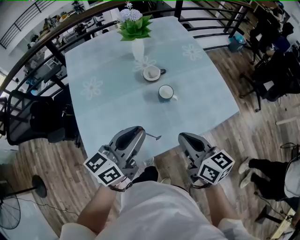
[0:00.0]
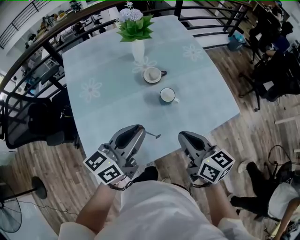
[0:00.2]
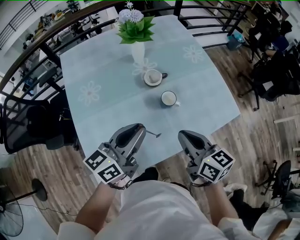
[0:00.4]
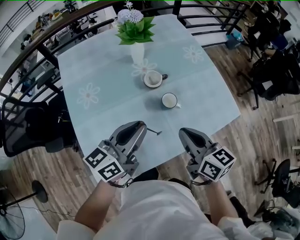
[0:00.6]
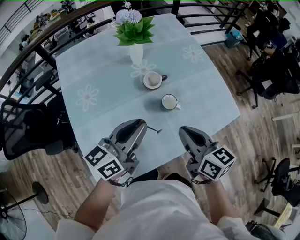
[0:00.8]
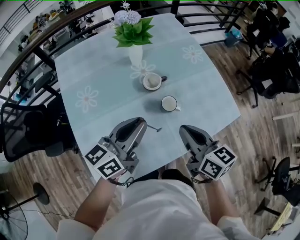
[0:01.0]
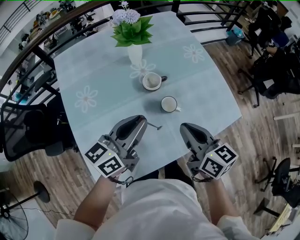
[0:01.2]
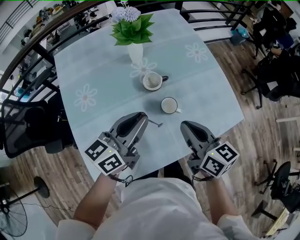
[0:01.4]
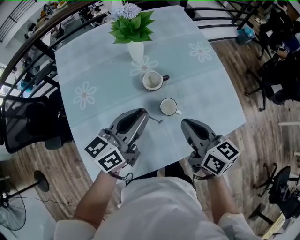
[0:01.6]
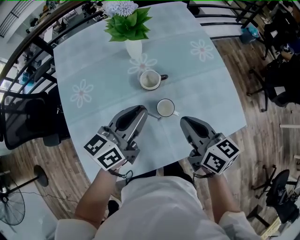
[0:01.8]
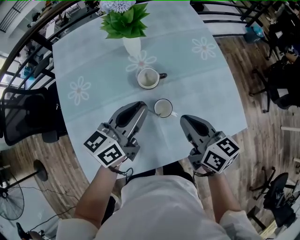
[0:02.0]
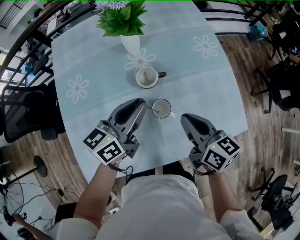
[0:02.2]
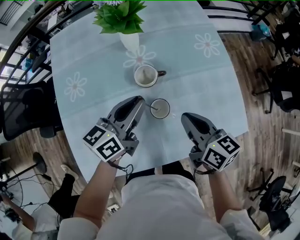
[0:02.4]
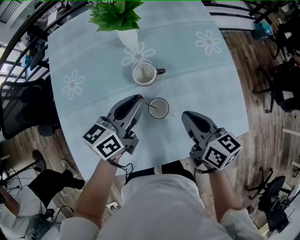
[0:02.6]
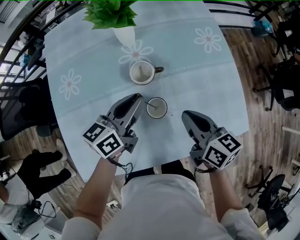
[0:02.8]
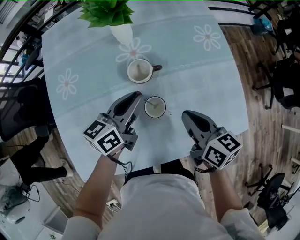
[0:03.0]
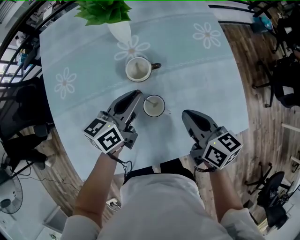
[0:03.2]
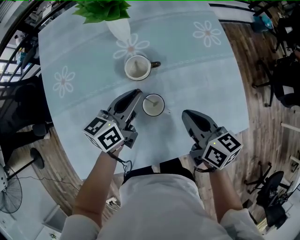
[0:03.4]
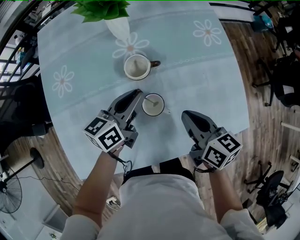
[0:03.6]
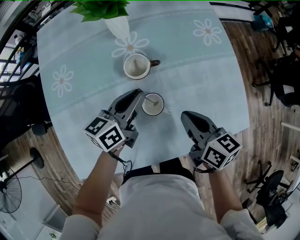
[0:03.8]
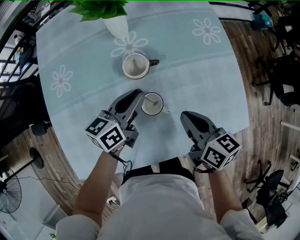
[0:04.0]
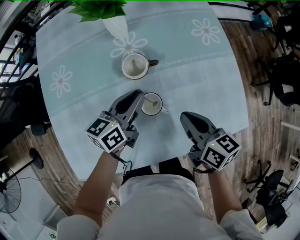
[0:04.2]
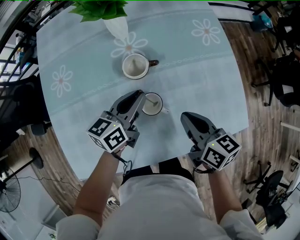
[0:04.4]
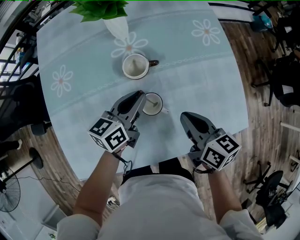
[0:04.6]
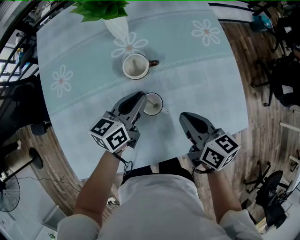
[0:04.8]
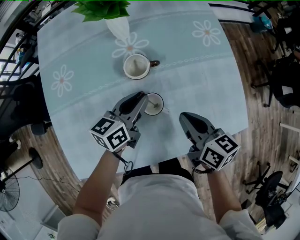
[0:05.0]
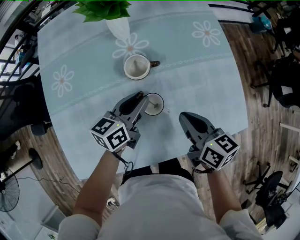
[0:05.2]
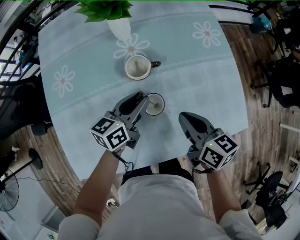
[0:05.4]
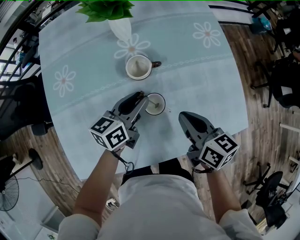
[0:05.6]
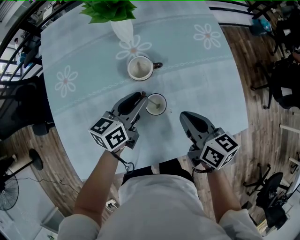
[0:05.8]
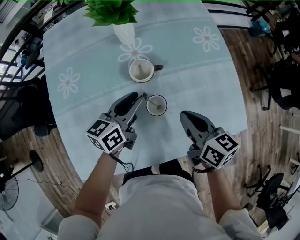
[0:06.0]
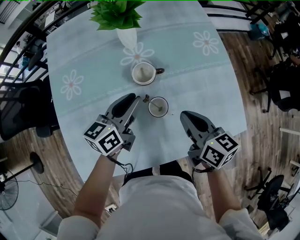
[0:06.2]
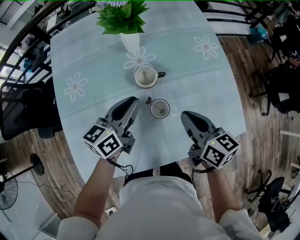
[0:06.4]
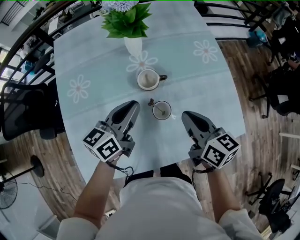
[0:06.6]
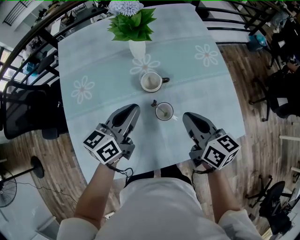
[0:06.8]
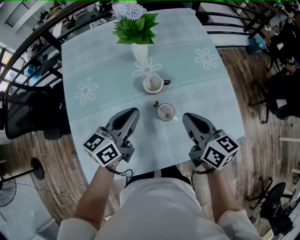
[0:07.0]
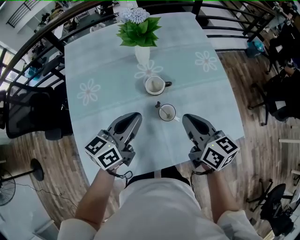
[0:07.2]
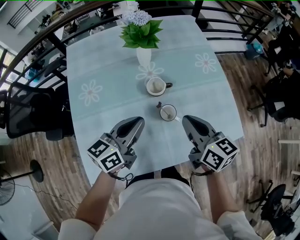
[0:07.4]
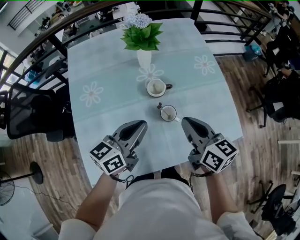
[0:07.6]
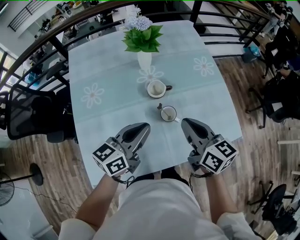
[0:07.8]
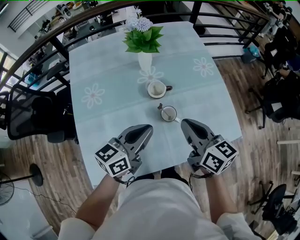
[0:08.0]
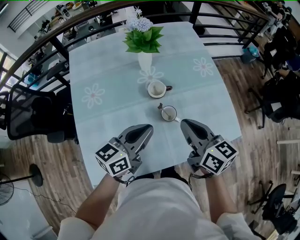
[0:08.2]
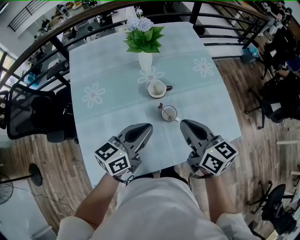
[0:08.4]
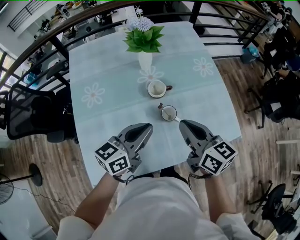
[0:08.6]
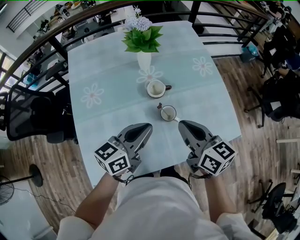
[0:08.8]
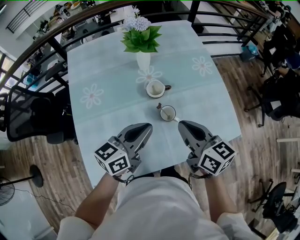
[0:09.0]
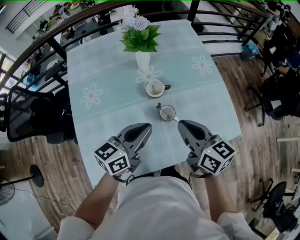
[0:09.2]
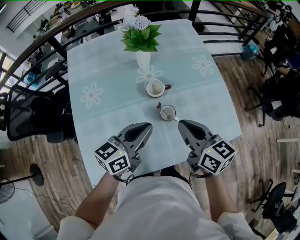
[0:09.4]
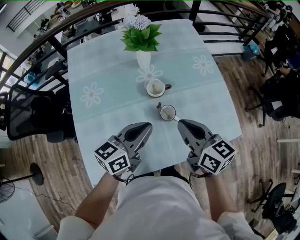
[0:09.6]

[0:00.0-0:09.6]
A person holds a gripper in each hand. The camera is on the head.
0:00.0 to 0:01.6: Both grippers travel together forward, roughly 15 cm.
0:01.6 to 0:03.2: The left gripper goes approximately 15 cm downward and forward; the right gripper heads downward, to the right and forward, covering about 15 cm.
0:03.2 to 0:04.8: The grippers move only a little.
0:04.8 to 0:06.4: The left gripper travels upward and to the left by about 10 cm; the right gripper travels upward by about 5 cm.
0:06.4 to 0:08.0: The left gripper shifts roughly 15 cm backward and upward. Meanwhile the right gripper goes some 10 cm upward and backward.
0:08.0 to 0:09.6: Neither gripper changes place.

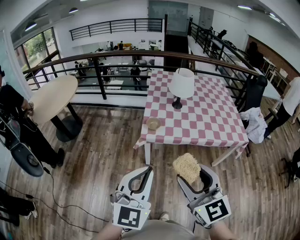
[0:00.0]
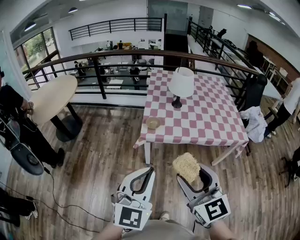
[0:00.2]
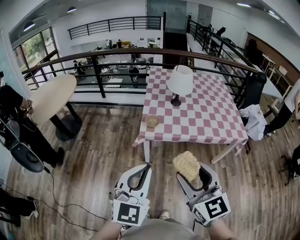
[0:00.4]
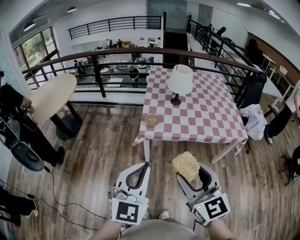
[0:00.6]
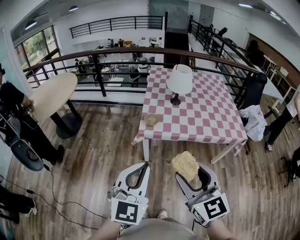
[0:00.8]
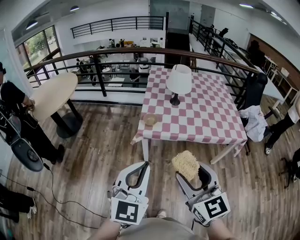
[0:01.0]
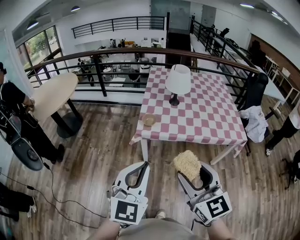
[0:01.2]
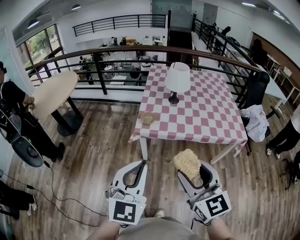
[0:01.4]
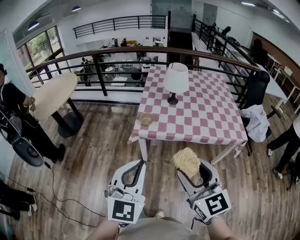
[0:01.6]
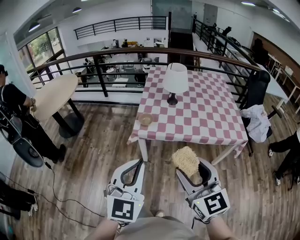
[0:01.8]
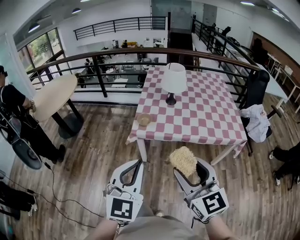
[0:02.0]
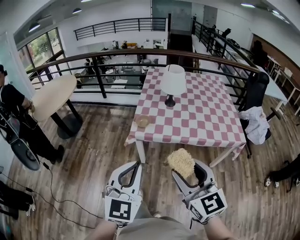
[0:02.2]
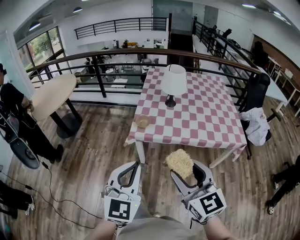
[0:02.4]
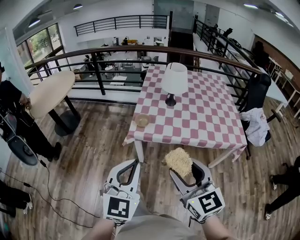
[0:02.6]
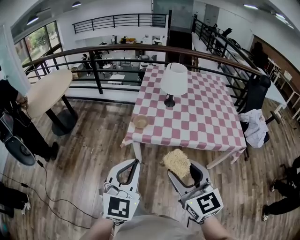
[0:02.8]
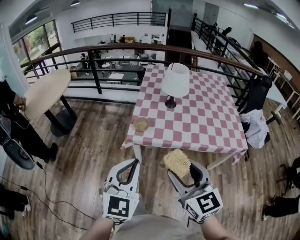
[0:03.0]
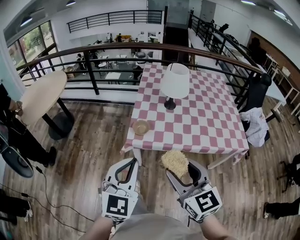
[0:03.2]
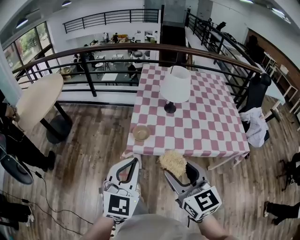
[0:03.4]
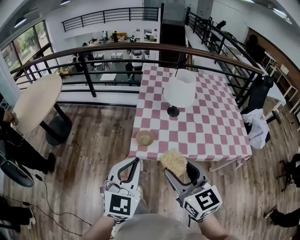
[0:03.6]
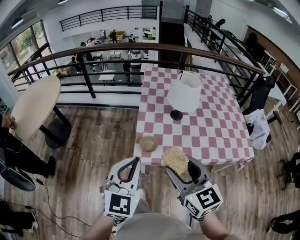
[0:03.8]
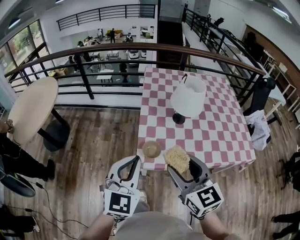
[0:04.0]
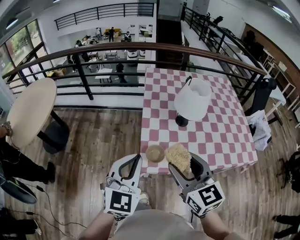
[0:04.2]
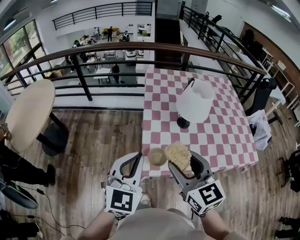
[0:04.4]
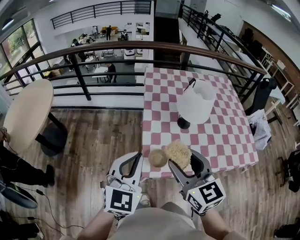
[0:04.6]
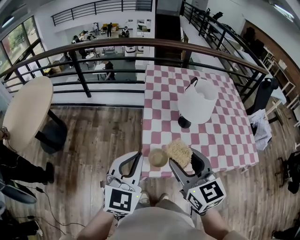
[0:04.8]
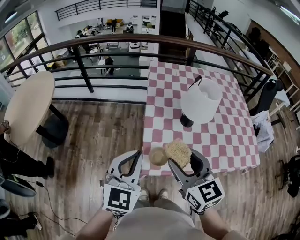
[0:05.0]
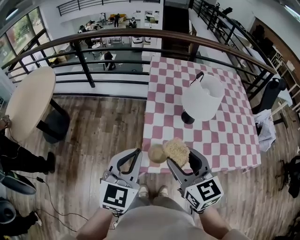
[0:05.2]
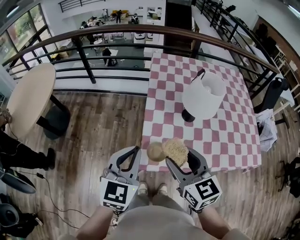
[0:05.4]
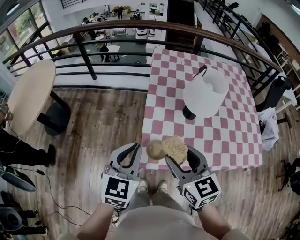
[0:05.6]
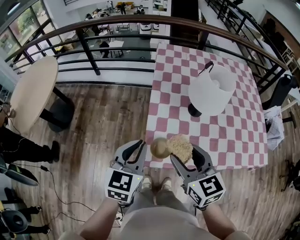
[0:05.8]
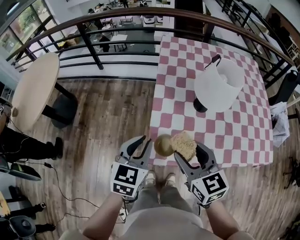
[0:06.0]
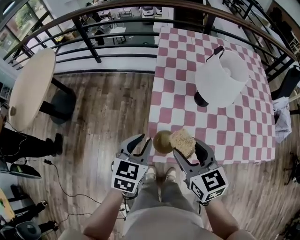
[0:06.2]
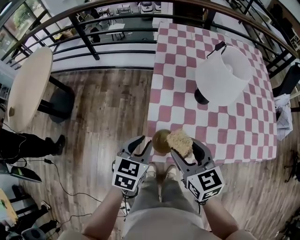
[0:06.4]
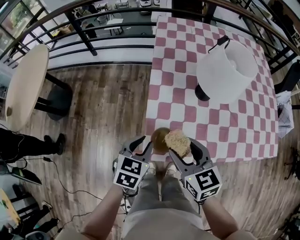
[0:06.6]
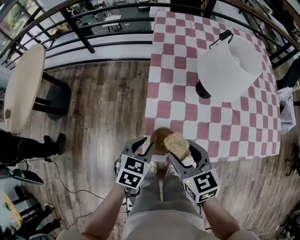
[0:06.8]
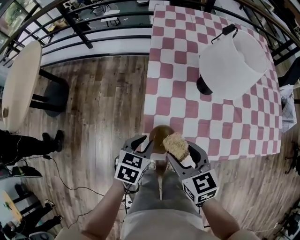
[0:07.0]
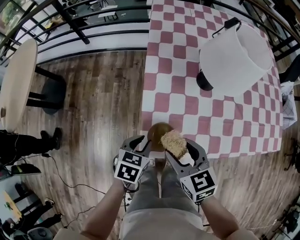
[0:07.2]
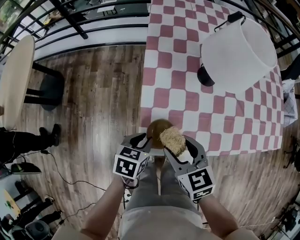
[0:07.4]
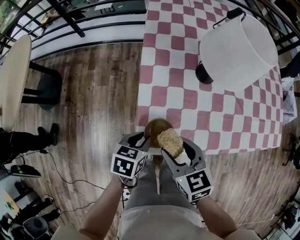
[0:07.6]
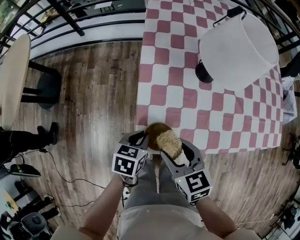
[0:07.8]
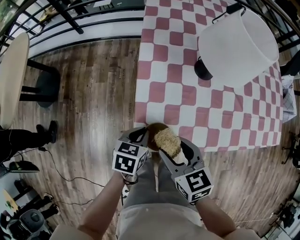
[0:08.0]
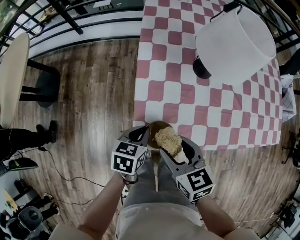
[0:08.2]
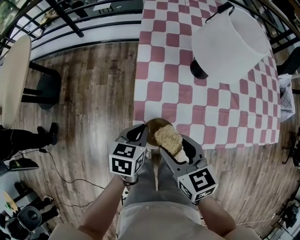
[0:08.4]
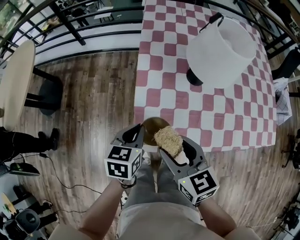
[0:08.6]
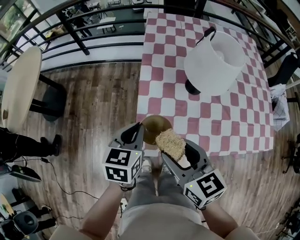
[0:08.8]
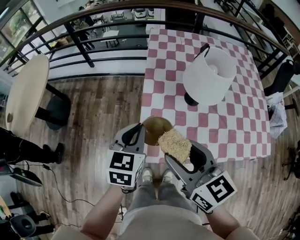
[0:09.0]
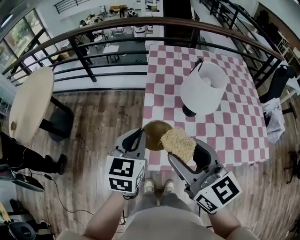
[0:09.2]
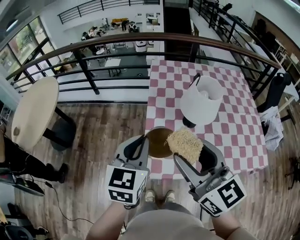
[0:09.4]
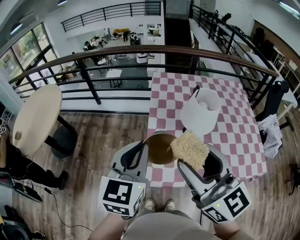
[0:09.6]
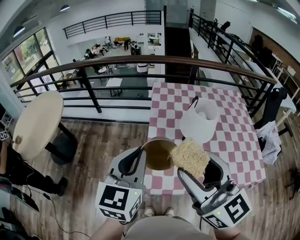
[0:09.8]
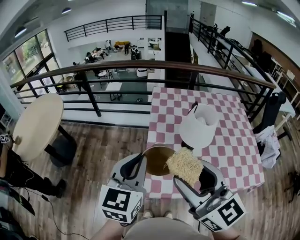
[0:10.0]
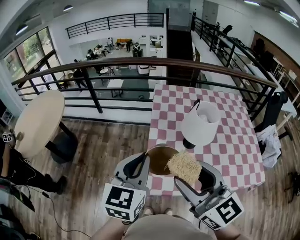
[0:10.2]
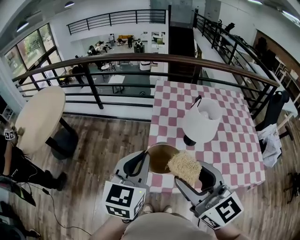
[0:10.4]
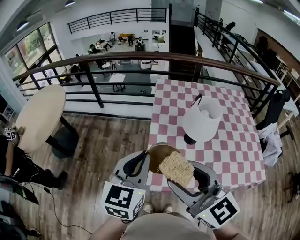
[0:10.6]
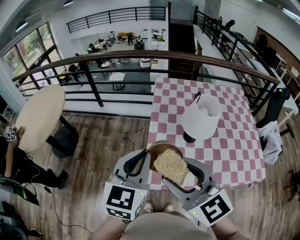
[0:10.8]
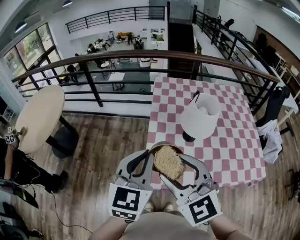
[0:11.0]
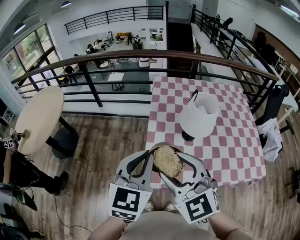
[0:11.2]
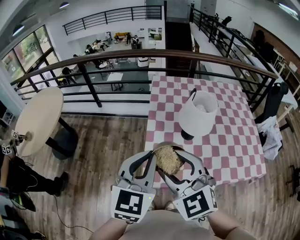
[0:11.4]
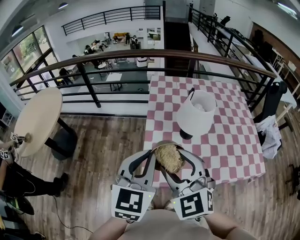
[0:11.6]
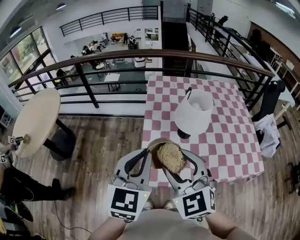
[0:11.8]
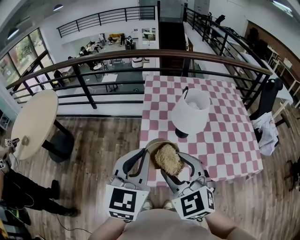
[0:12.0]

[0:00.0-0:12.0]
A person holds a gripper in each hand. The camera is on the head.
0:00.0 to 0:01.6: Both grippers travel together to the right, roughly 10 cm.
0:01.6 to 0:03.0: The grippers both shift forward by approximately 10 cm.
0:03.0 to 0:04.4: The left gripper moves forward, approximately 30 cm. The right gripper shifts approximately 35 cm forward and to the left.
0:04.4 to 0:06.0: The grippers both shift downward and forward by approximately 15 cm. The left gripper swivels some 20 degrees.
0:06.0 to 0:07.6: Both grippers travel together downward, about 20 cm. The left gripper swivels approximately 40 degrees.
0:07.6 to 0:09.0: The two grippers go roughly 20 cm upward. The right gripper rotates some 20 degrees, while the left gripper swivels approximately 30 degrees.
0:09.0 to 0:10.4: Both grippers travel together upward, some 15 cm. The right gripper turns by about 20 degrees.
0:10.4 to 0:12.0: The left gripper ends up some 5 cm from where it was. The right gripper goes about 5 cm downward, and turns by about 30 degrees.

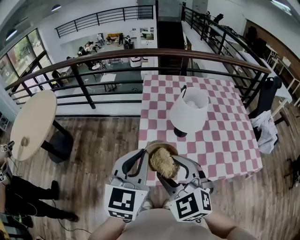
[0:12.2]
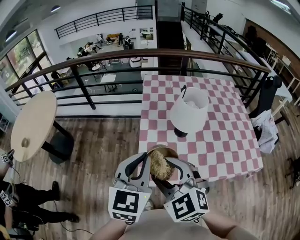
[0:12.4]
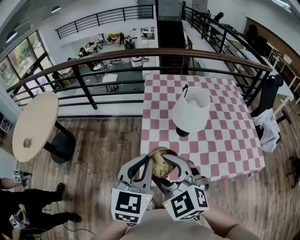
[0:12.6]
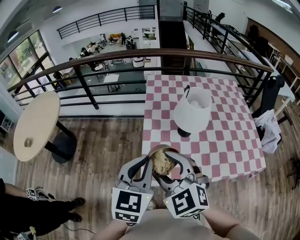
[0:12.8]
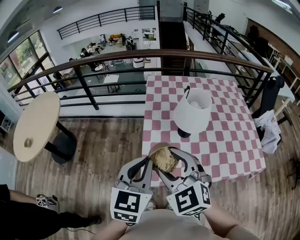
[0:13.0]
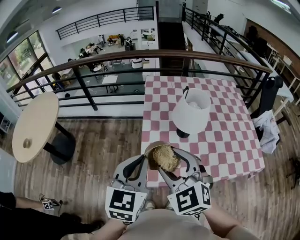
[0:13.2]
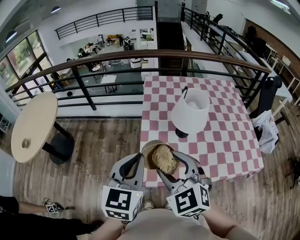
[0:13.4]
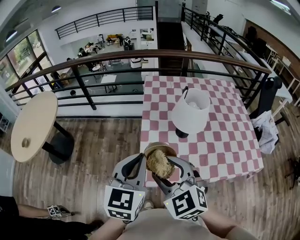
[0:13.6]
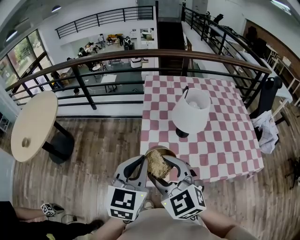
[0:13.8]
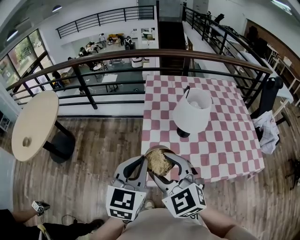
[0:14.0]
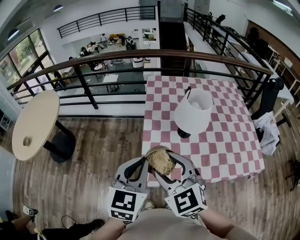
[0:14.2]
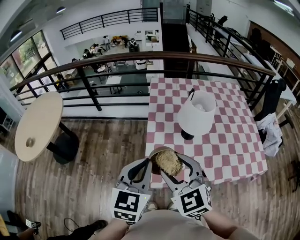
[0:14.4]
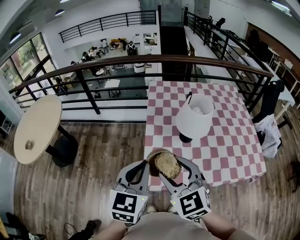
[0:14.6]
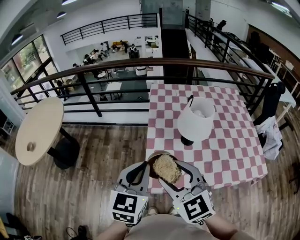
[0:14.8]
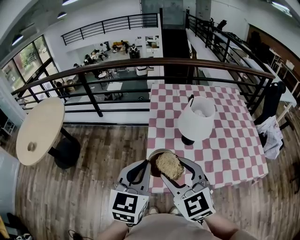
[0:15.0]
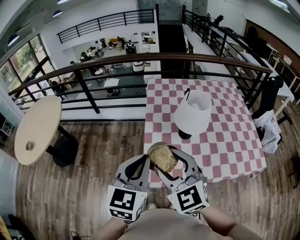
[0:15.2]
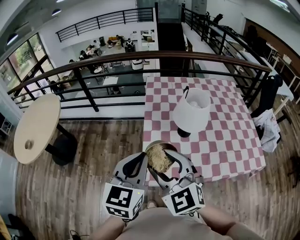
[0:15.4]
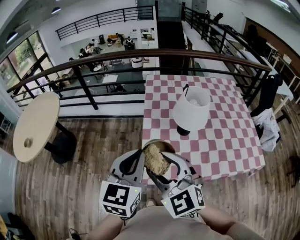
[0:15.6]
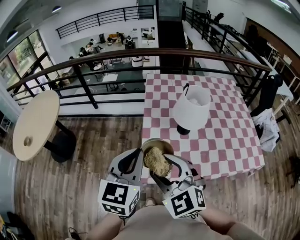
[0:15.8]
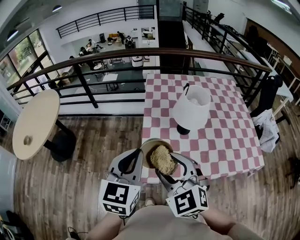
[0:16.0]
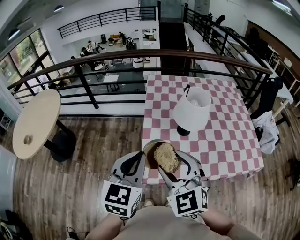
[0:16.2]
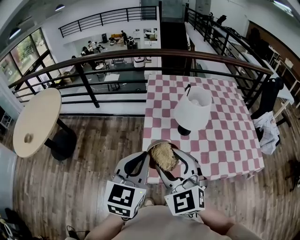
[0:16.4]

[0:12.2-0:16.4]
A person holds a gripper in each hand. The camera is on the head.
0:12.2 to 0:16.4: The grippers make only small movements.
